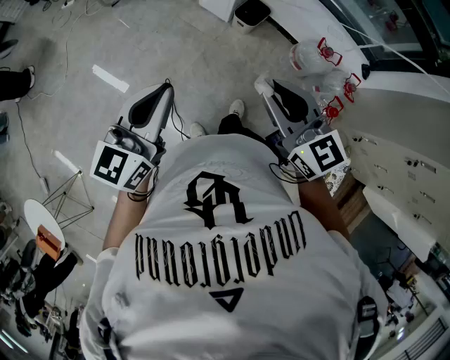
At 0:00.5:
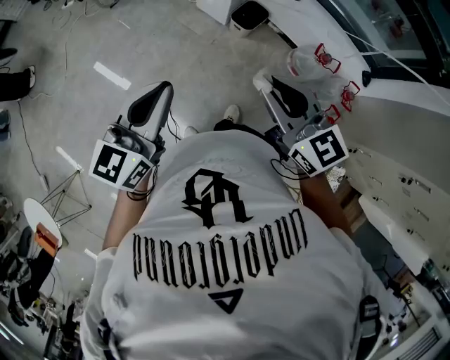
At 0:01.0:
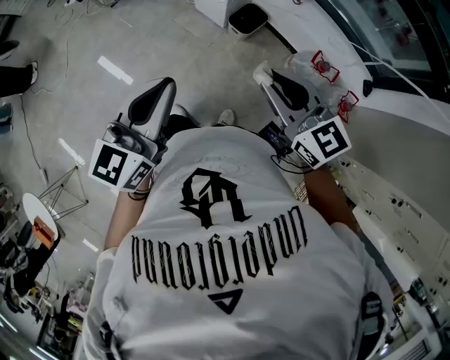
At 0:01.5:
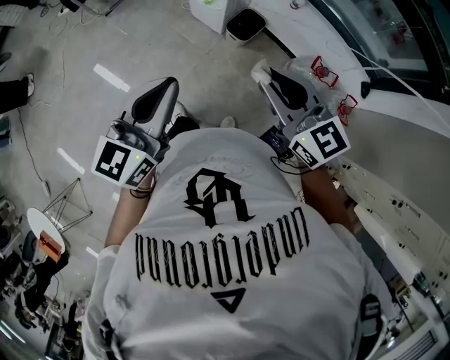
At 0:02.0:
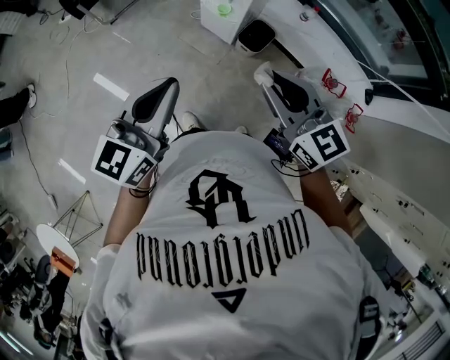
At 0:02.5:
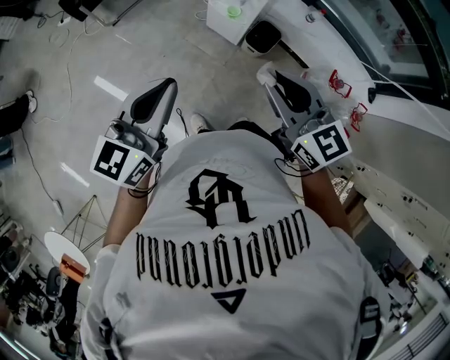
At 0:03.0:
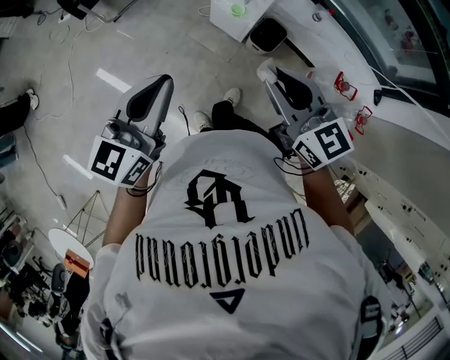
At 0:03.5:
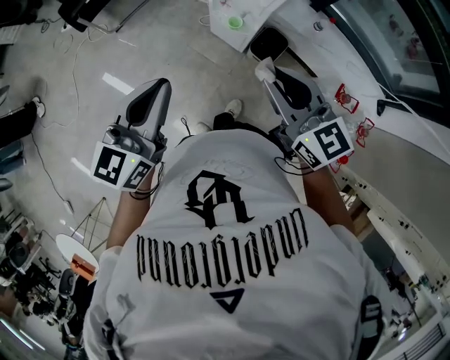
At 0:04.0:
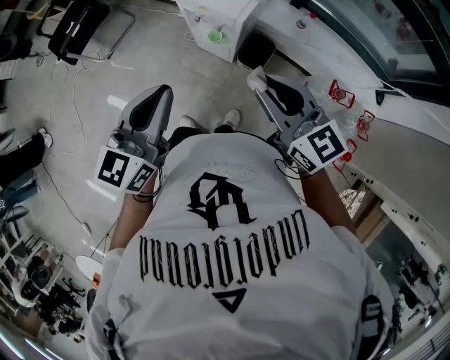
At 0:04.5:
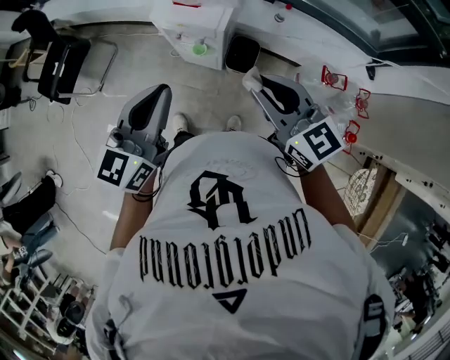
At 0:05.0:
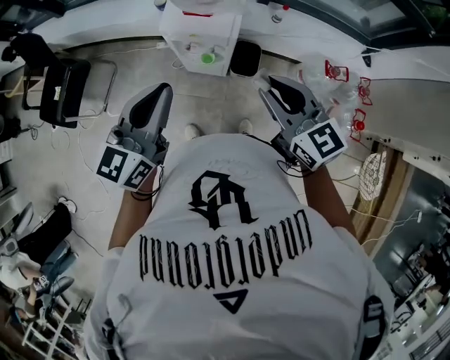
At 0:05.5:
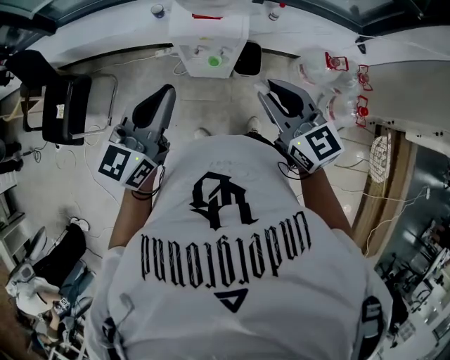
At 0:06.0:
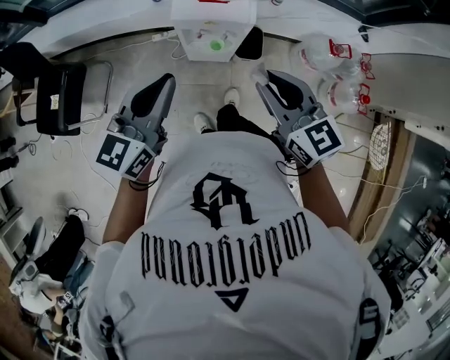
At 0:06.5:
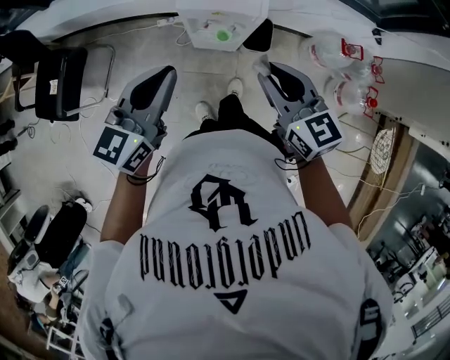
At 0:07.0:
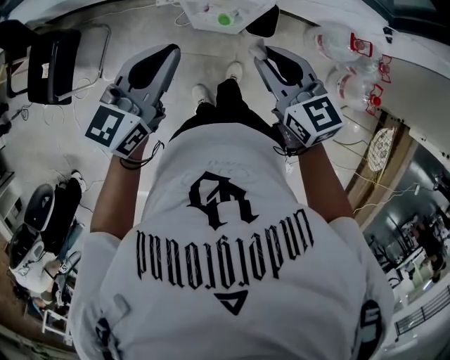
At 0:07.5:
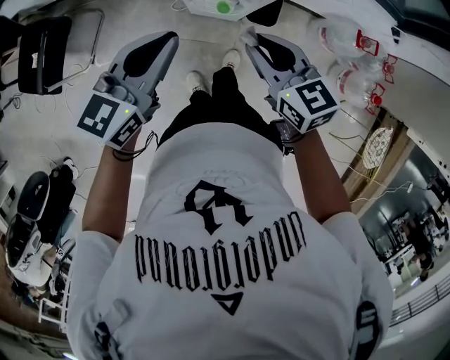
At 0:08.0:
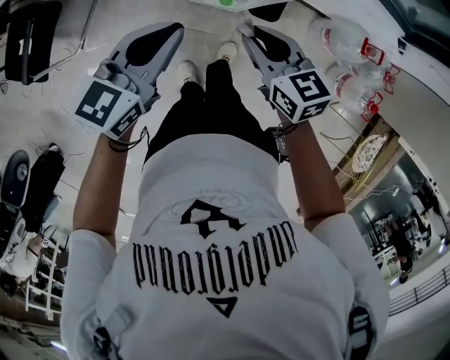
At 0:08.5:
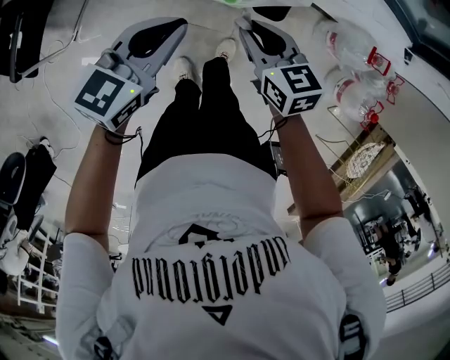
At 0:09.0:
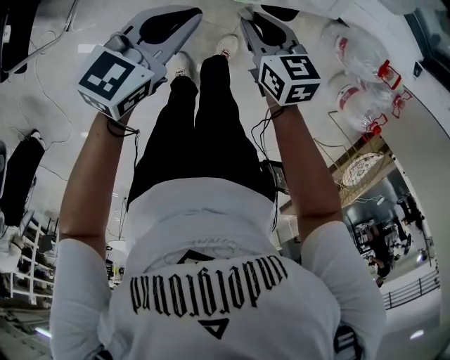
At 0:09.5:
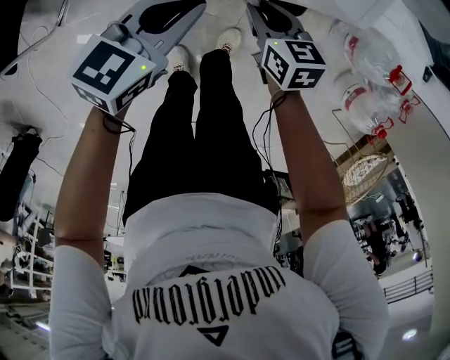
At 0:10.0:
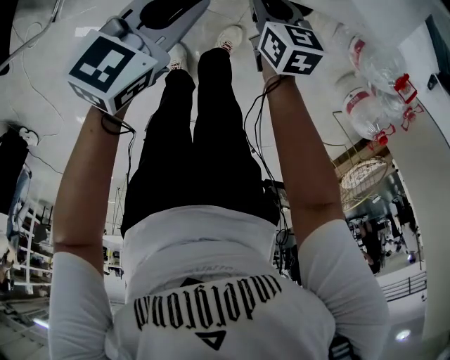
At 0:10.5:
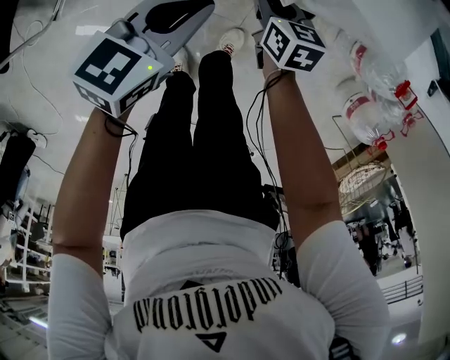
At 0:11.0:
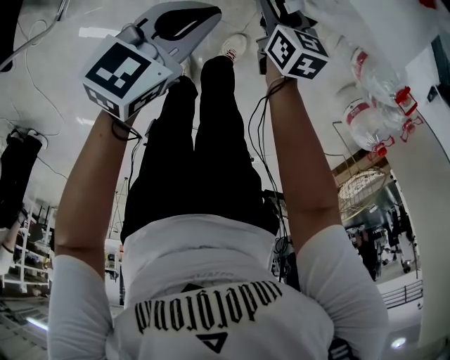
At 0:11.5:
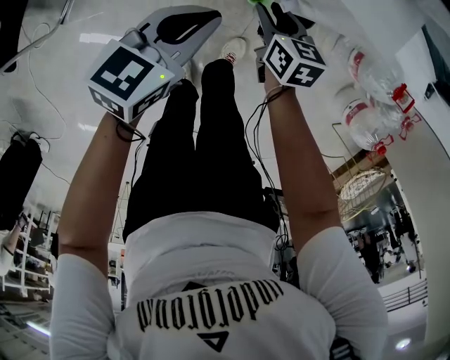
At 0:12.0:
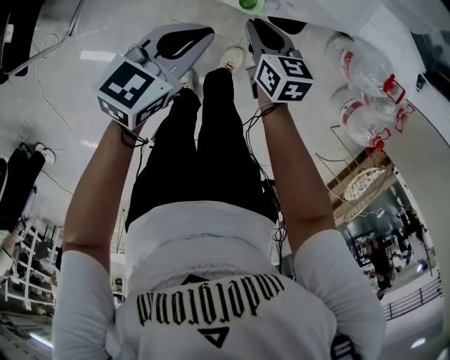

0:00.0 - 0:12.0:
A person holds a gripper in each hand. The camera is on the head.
0:00.0 - 0:02.0: The two grippers go approximately 25 cm forward.
0:02.0 - 0:04.0: The grippers both shift forward by about 20 cm.
0:04.0 - 0:06.0: The left gripper changes place by approximately 20 cm, and changes its angle by approximately 30 degrees. The right gripper ends up roughly 20 cm from where it was, and turns by roughly 30 degrees.
0:06.0 - 0:08.0: Both grippers travel together downward and forward, roughly 20 cm. The right gripper turns by some 20 degrees.
0:08.0 - 0:10.0: The grippers both shift downward by approximately 30 cm.
0:10.0 - 0:12.0: Both grippers move upward, about 5 cm.

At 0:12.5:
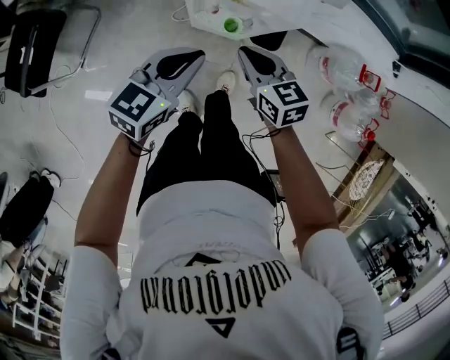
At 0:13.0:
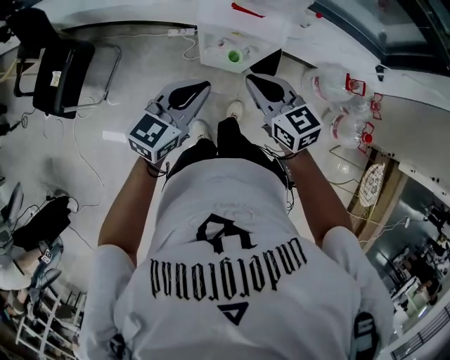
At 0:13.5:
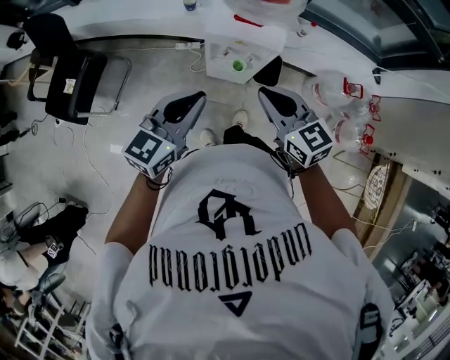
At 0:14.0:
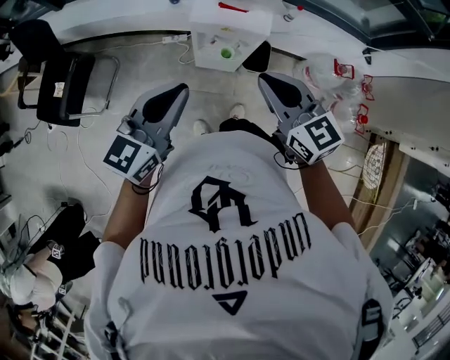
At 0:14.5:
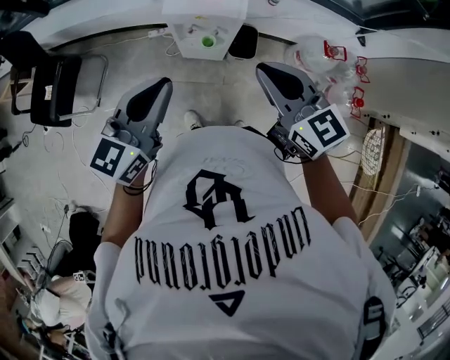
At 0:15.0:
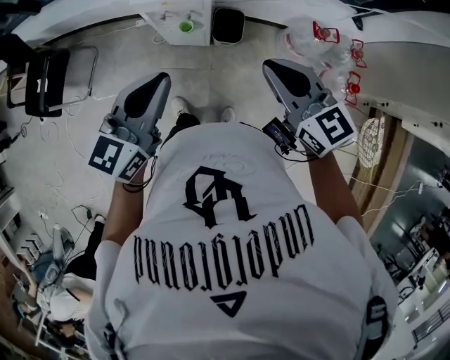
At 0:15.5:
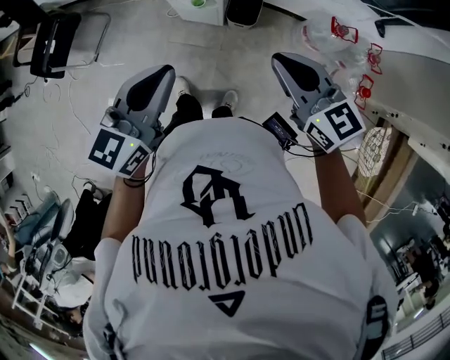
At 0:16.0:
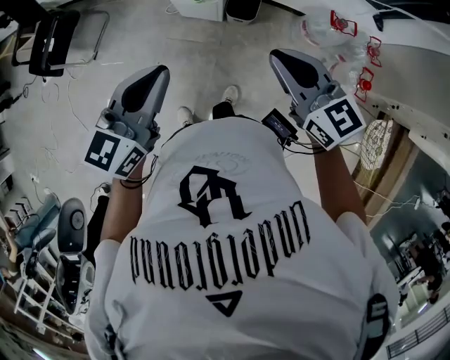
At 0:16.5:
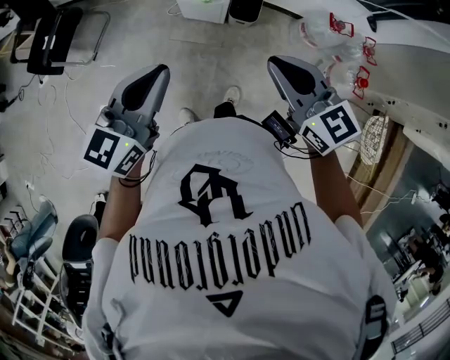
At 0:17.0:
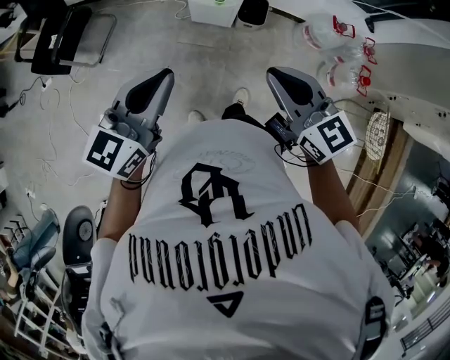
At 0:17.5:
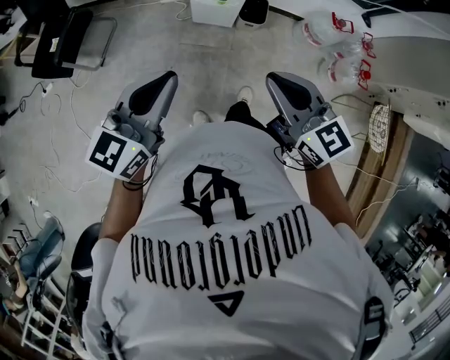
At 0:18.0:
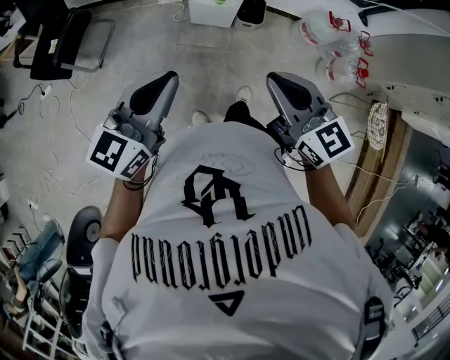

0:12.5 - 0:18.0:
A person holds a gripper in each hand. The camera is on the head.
0:12.5 - 0:14.5: The two grippers go some 35 cm upward and backward. The right gripper changes its angle by roughly 20 degrees.
0:14.5 - 0:16.0: The right gripper is displaced to the right and backward by roughly 20 cm. Meanwhile the left gripper travels backward and to the right by roughly 20 cm.
0:16.0 - 0:18.0: The two grippers go about 25 cm to the left and backward.

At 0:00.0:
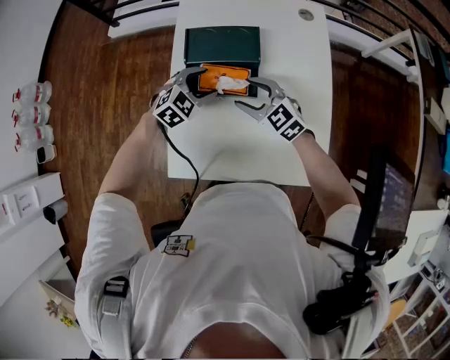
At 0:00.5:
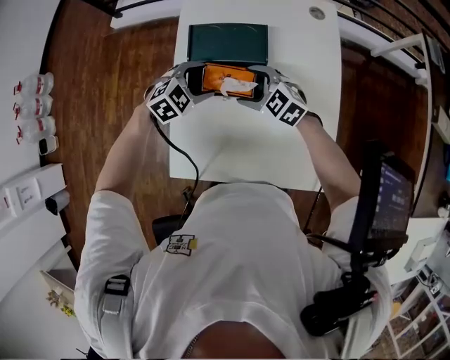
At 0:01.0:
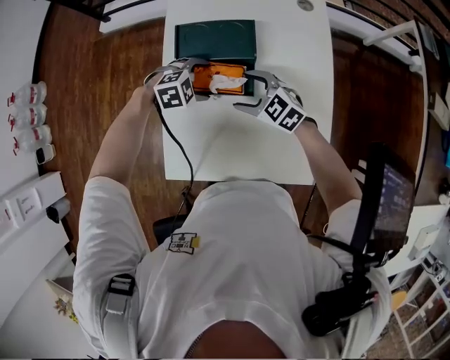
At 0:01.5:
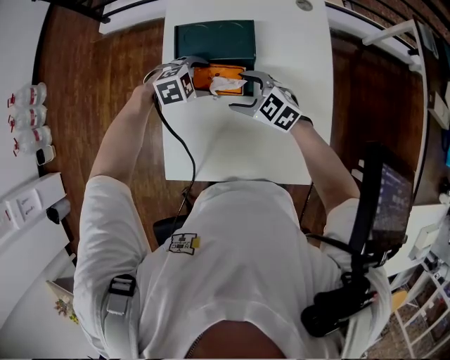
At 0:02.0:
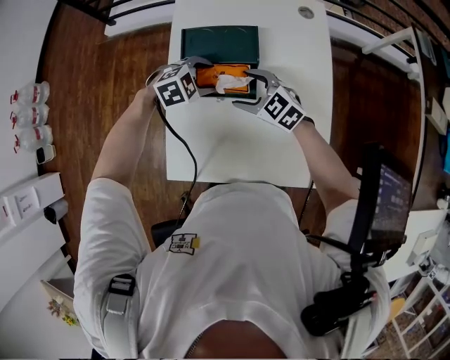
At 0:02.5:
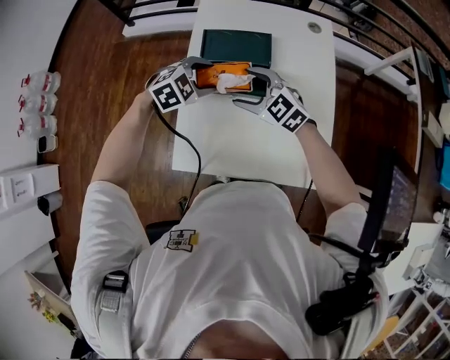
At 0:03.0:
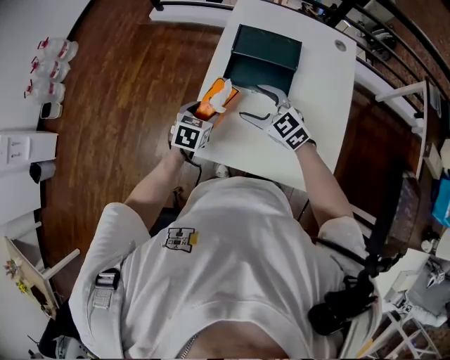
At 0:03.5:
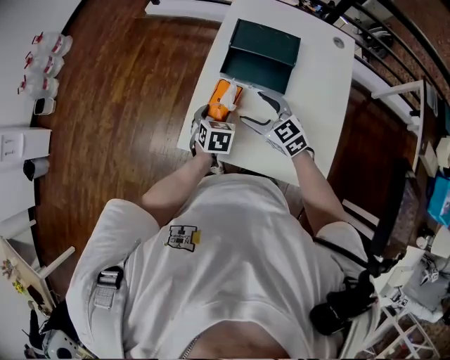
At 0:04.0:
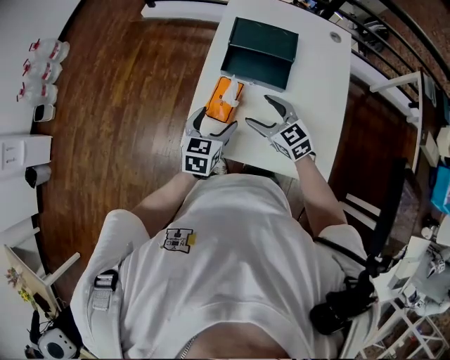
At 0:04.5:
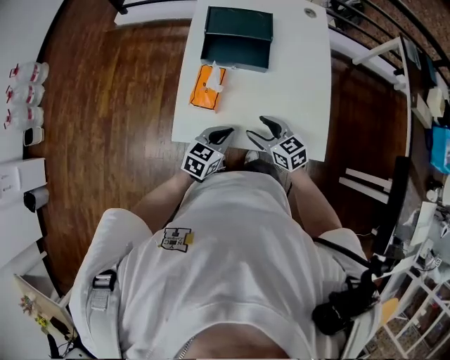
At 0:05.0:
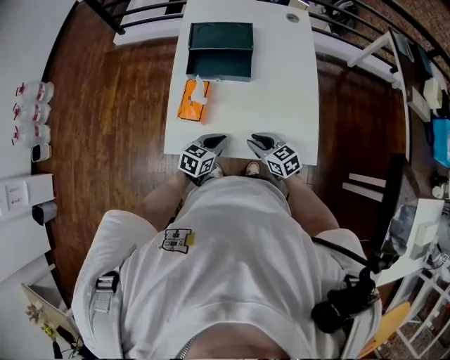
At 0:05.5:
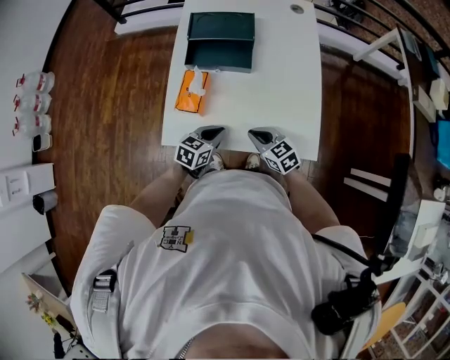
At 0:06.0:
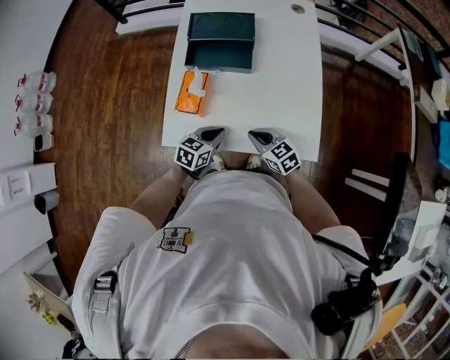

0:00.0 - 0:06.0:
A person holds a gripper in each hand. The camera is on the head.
0:02.0 - 0:04.0: The left gripper moves up and down over some 10 cm, changing direction 2 times, swivels some 80 degrees, and opens up; the right gripper ends up roughly 15 cm from where it was.
0:04.0 - 0:06.0: The right gripper shifts about 20 cm backward, downward and to the right, and closes up. The left gripper shifts about 15 cm to the right, downward and backward, turns by roughly 30 degrees, and closes up.

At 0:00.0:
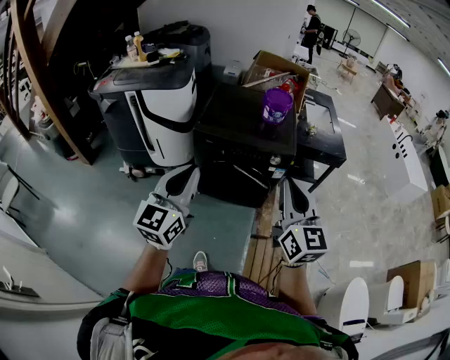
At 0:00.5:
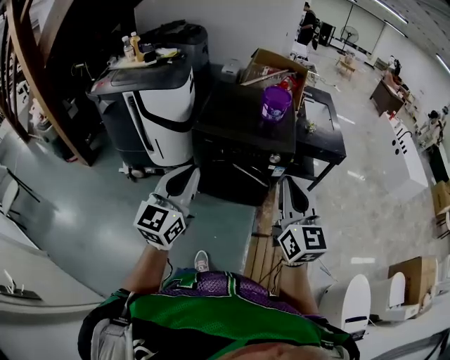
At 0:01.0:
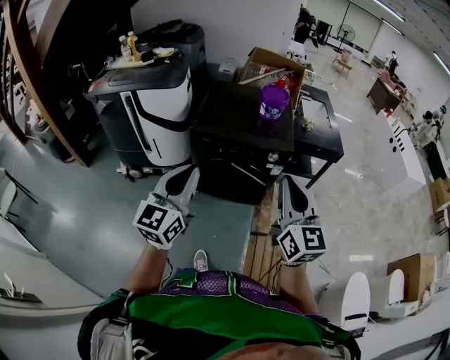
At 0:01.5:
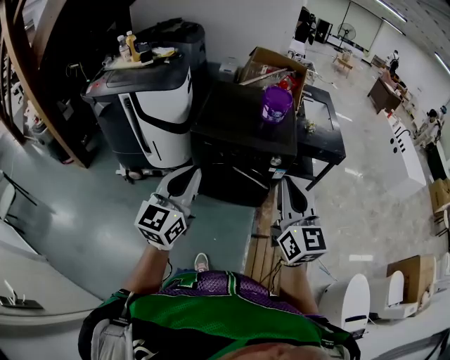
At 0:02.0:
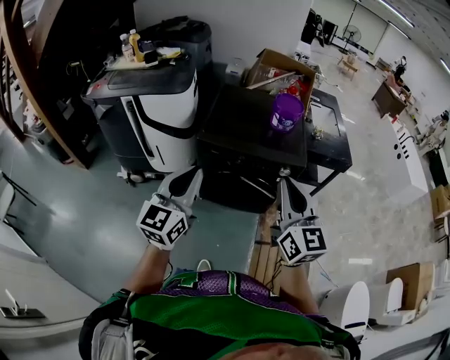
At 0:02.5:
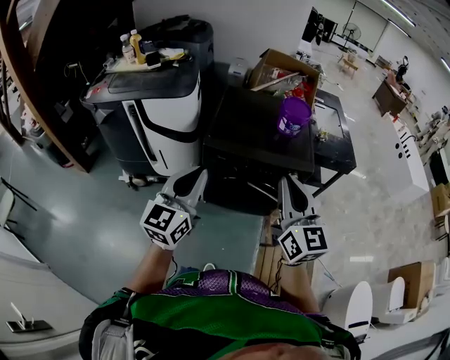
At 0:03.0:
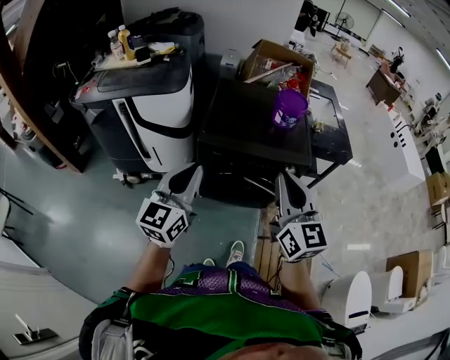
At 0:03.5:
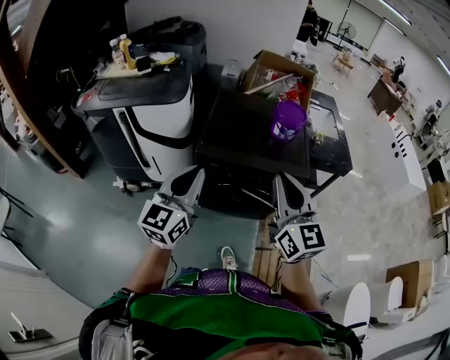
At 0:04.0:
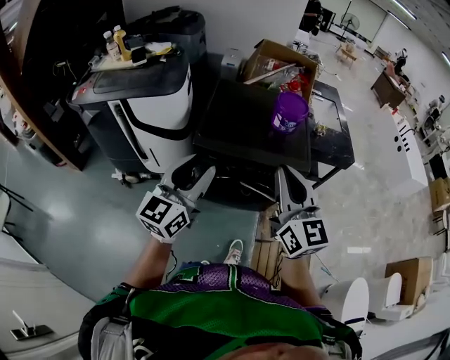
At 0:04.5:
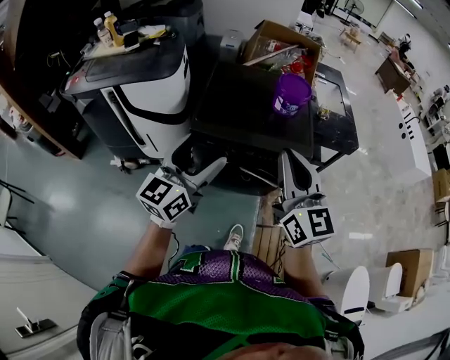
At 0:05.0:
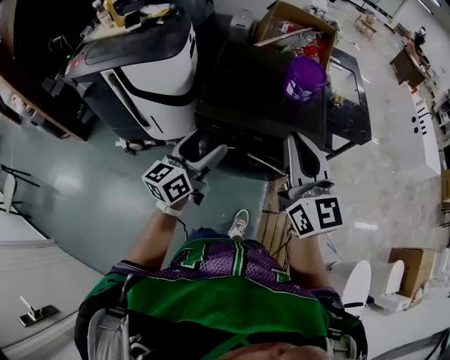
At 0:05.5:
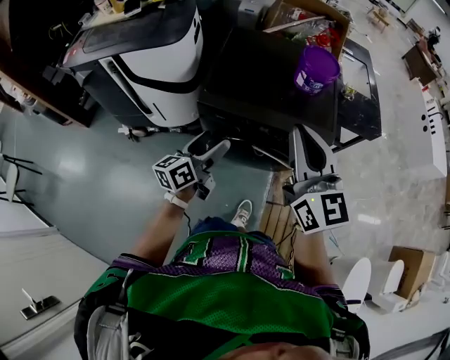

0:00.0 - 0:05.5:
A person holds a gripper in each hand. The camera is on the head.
0:00.0 - 0:02.0: Both grippers travel together forward and to the left, approximately 10 cm.
0:02.0 - 0:03.5: Both grippers travel together forward, approximately 10 cm.
0:03.5 - 0:05.5: The right gripper shifts roughly 10 cm forward, while the left gripper is displaced downward and forward by some 25 cm, rotates approximately 40 degrees, and opens up.
